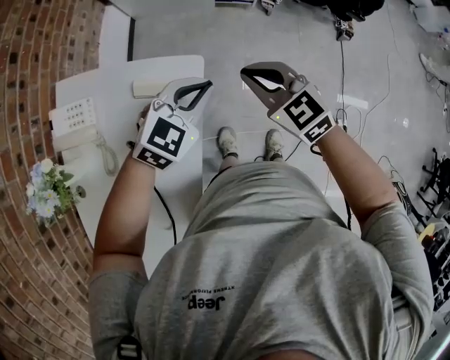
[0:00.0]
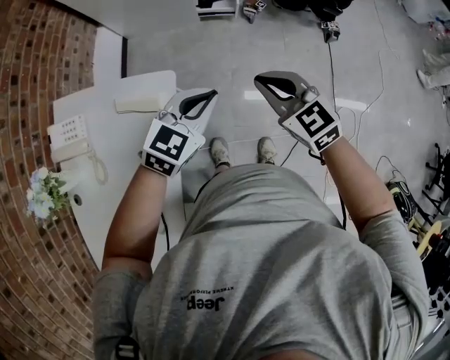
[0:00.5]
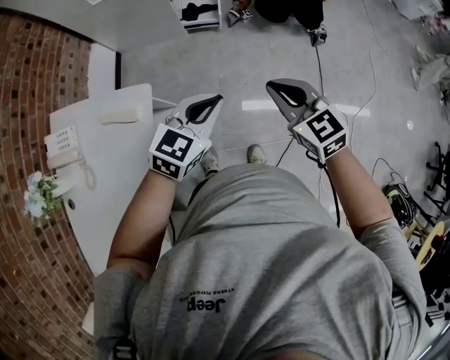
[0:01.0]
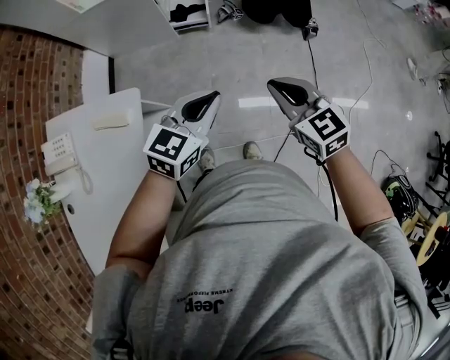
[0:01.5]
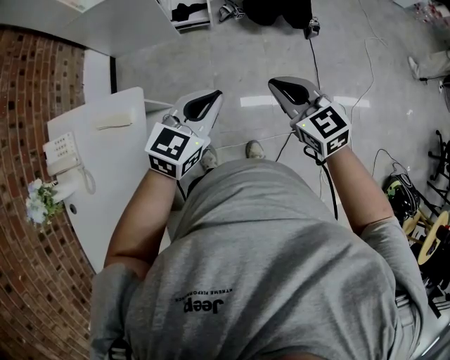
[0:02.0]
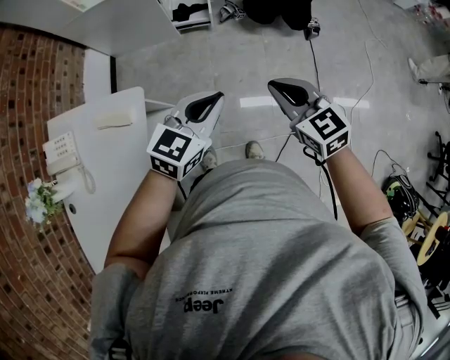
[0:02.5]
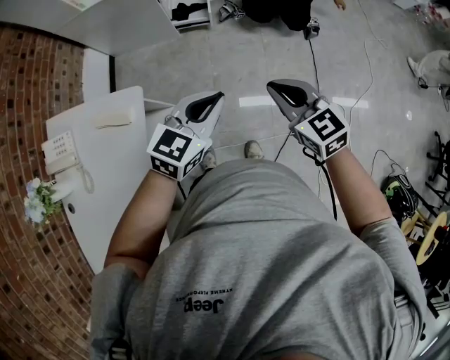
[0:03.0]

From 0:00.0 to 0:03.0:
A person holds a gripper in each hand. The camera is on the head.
From 0:00.0 to 0:01.5: The grippers both shift to the right by approximately 30 cm.
From 0:01.5 to 0:03.0: Both grippers stay about where they are.

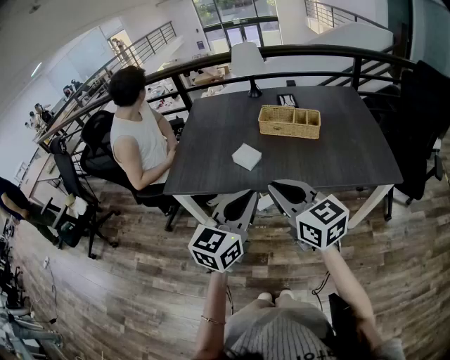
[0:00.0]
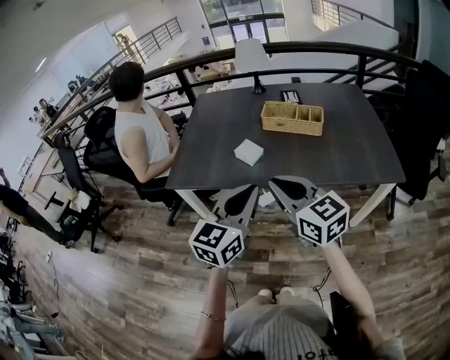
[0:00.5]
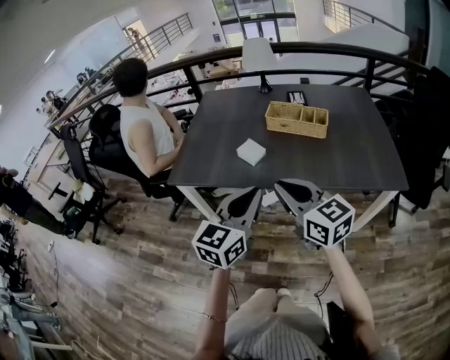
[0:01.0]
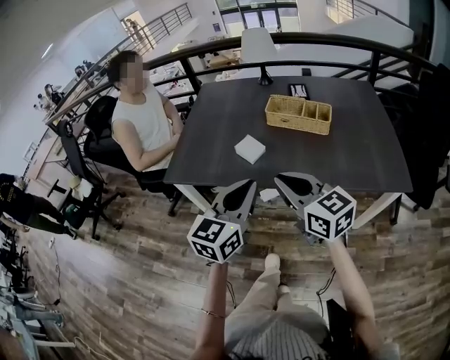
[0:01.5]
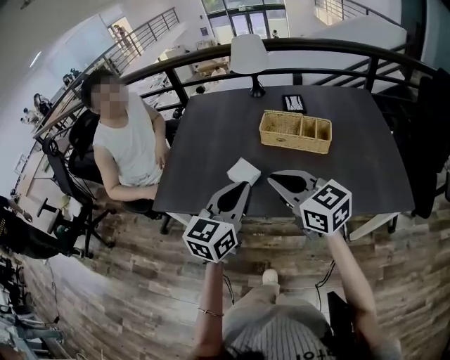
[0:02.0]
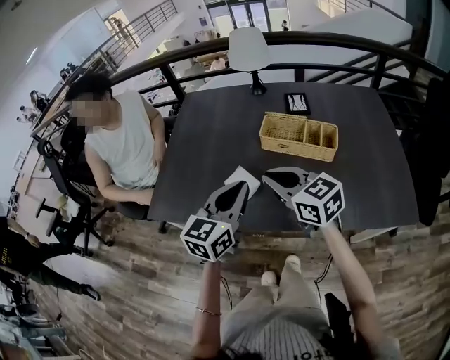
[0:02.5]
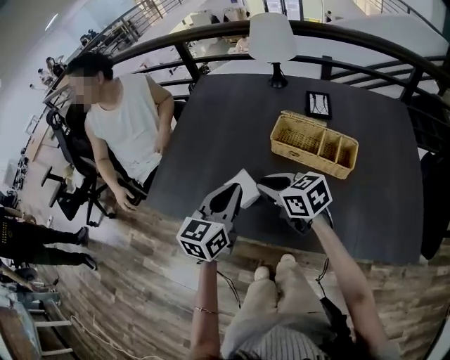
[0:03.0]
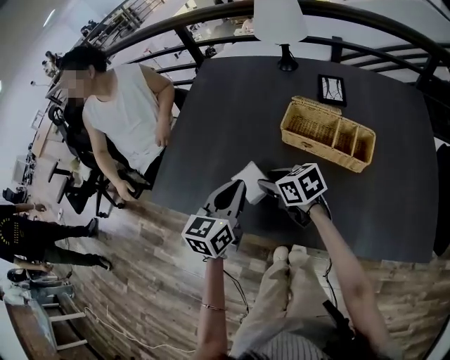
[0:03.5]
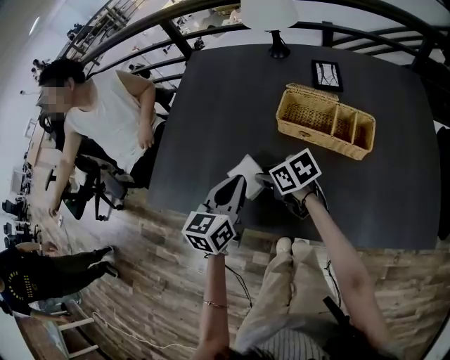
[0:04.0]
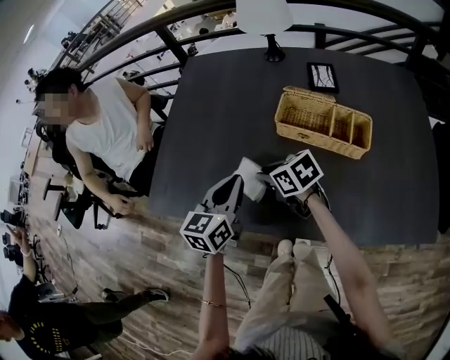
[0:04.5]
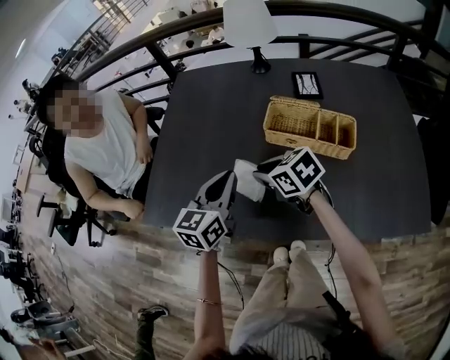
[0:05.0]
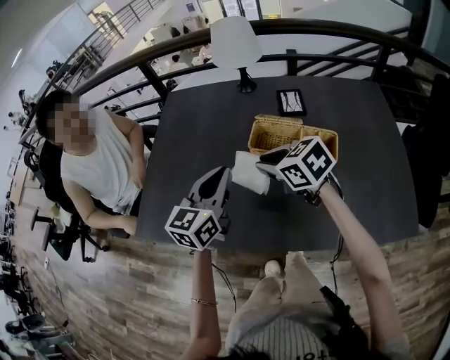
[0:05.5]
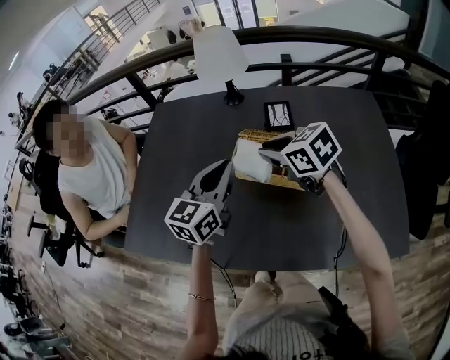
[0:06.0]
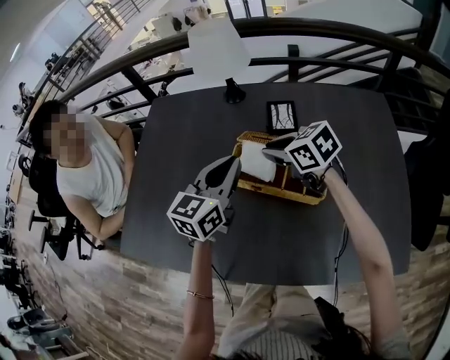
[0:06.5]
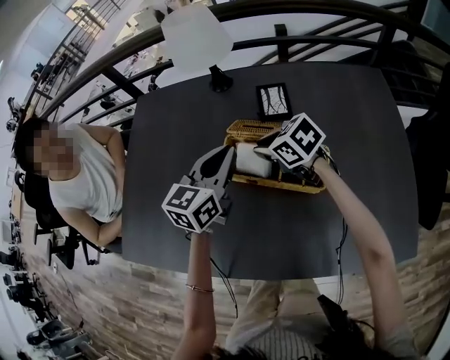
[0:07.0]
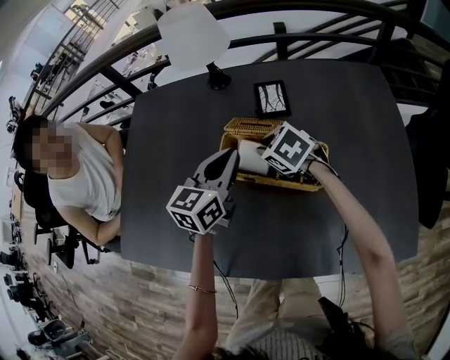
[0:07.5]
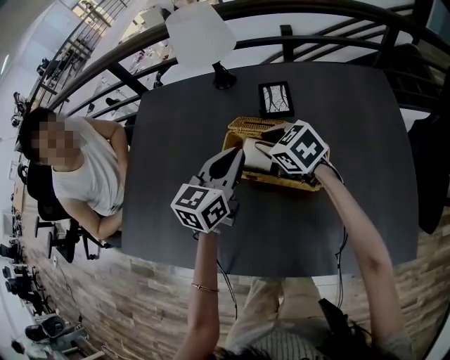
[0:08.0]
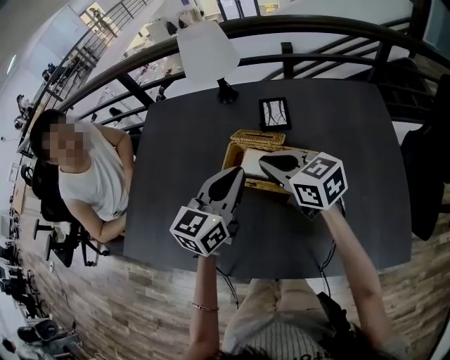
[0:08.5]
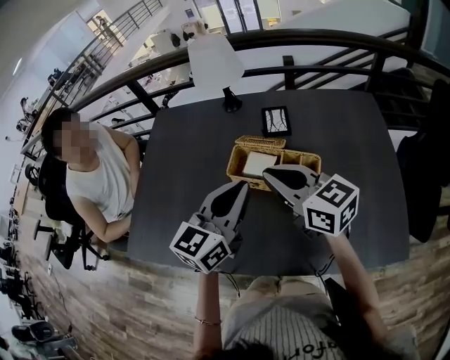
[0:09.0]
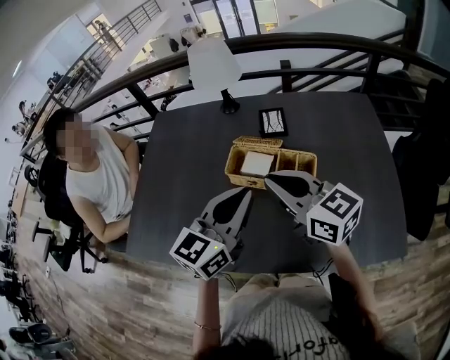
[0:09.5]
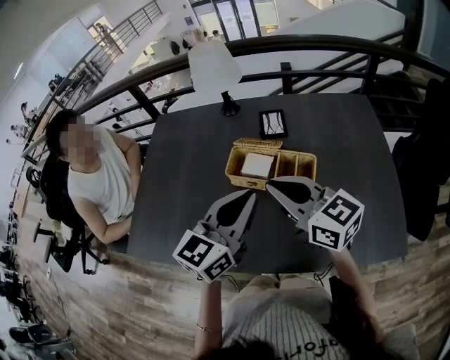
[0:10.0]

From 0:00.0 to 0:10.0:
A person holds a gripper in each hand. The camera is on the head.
From 0:00.0 to 0:02.0: The two grippers go roughly 15 cm forward.
From 0:02.0 to 0:04.0: The right gripper moves downward and forward, roughly 25 cm, rotates roughly 50 degrees, and opens its fingers; the left gripper shifts some 20 cm forward and downward, and swivels approximately 20 degrees.
From 0:04.0 to 0:06.0: The right gripper heads to the right and upward, covering about 25 cm, and turns by some 20 degrees, while the left gripper moves to the right, upward and forward, some 20 cm, and rotates some 20 degrees.
From 0:06.0 to 0:08.0: The right gripper goes about 10 cm downward and forward; the left gripper is displaced to the right and downward by roughly 10 cm.
From 0:08.0 to 0:10.0: Both grippers move backward and upward, about 20 cm. The right gripper tilts its fingers approximately 30 degrees upward.

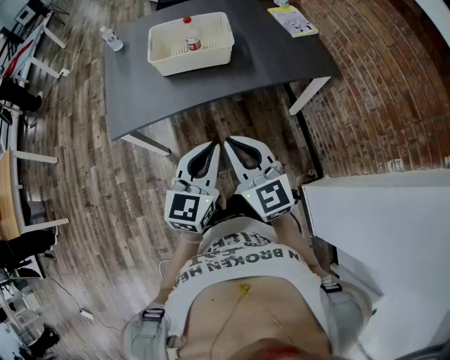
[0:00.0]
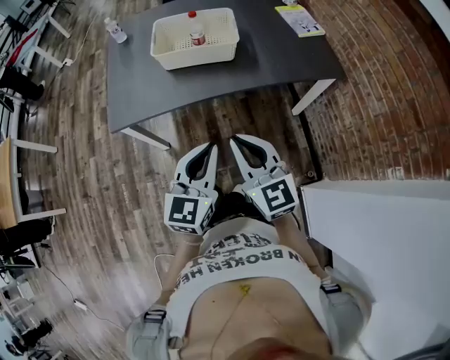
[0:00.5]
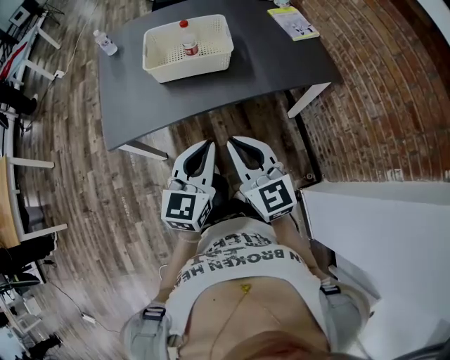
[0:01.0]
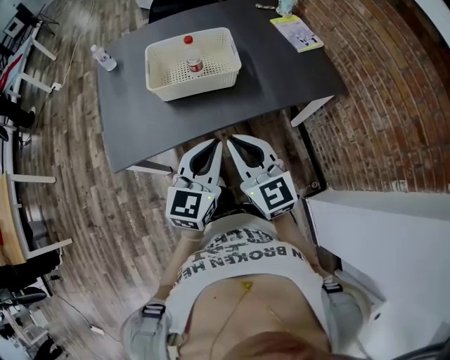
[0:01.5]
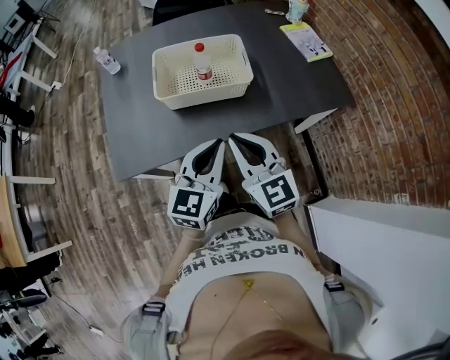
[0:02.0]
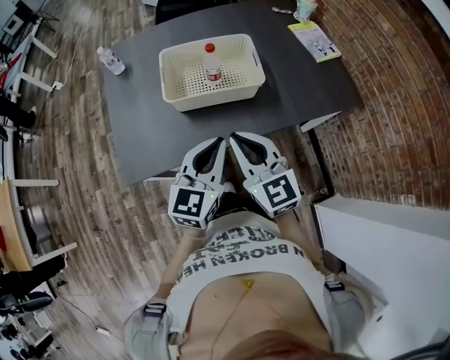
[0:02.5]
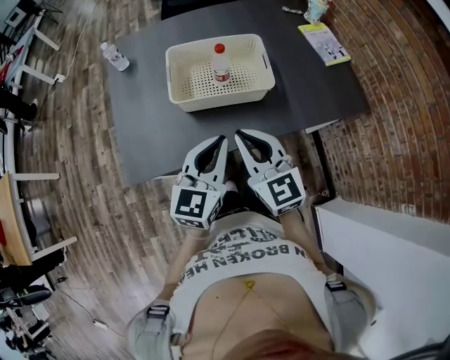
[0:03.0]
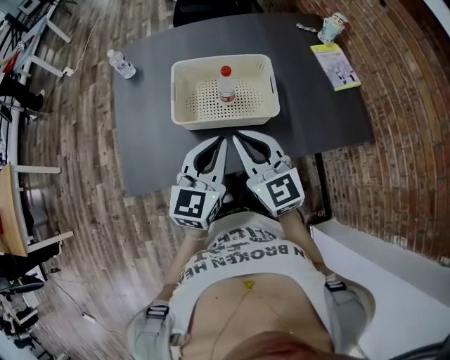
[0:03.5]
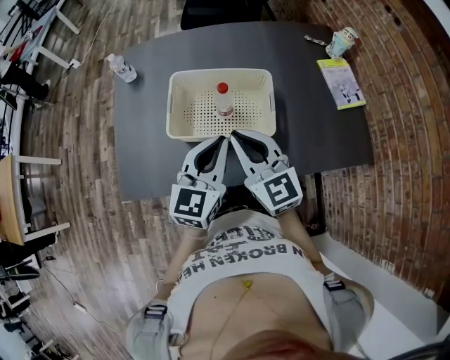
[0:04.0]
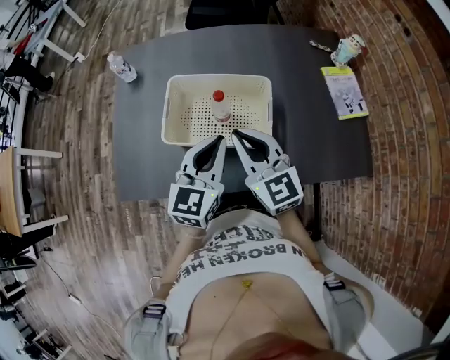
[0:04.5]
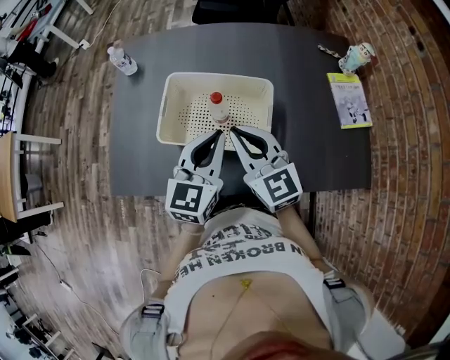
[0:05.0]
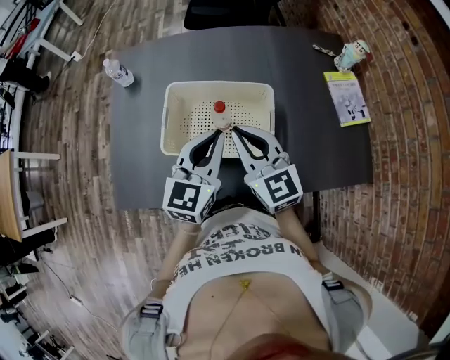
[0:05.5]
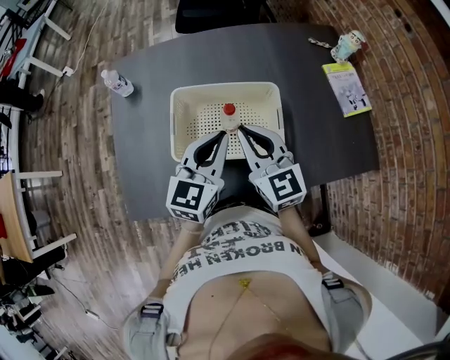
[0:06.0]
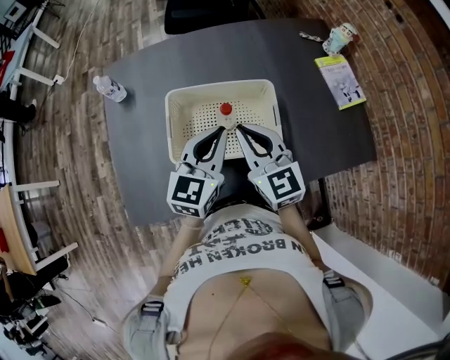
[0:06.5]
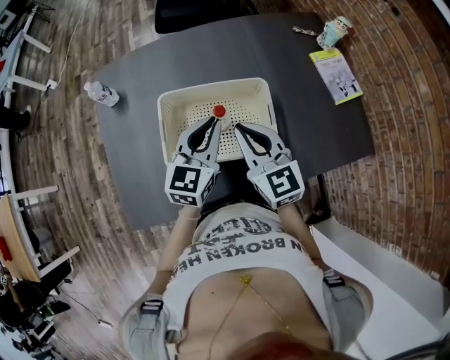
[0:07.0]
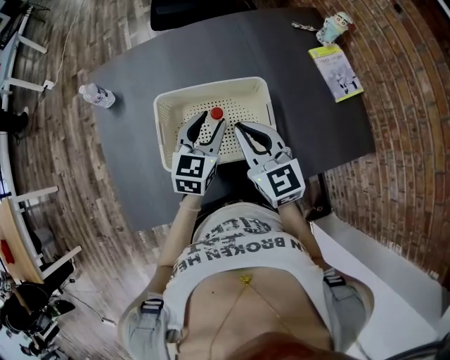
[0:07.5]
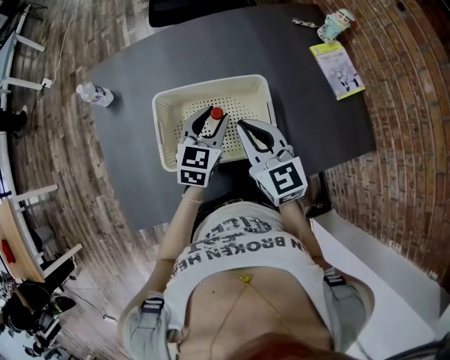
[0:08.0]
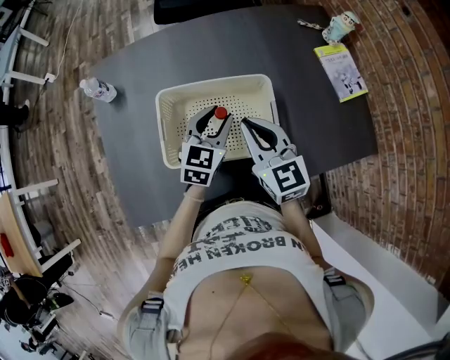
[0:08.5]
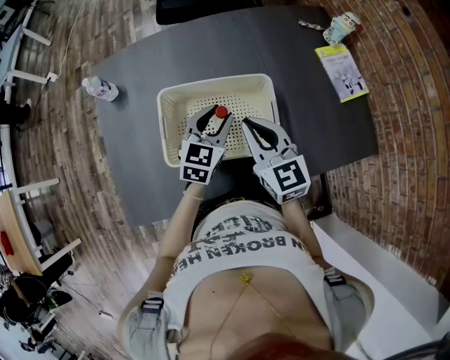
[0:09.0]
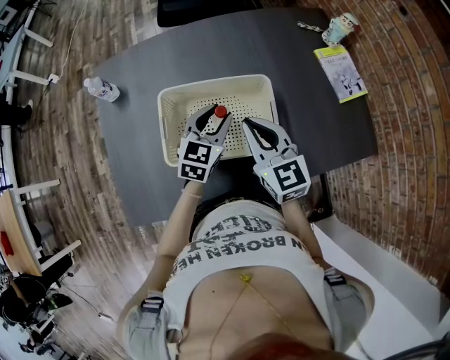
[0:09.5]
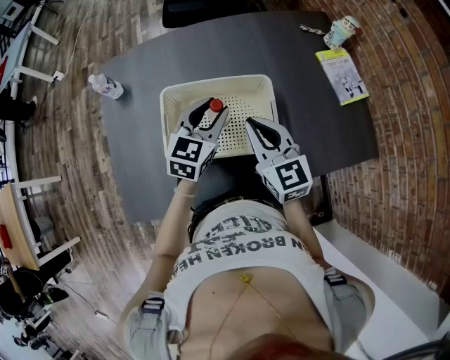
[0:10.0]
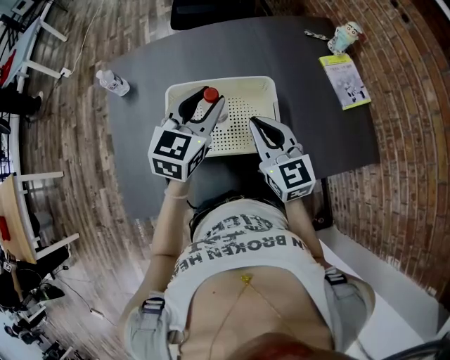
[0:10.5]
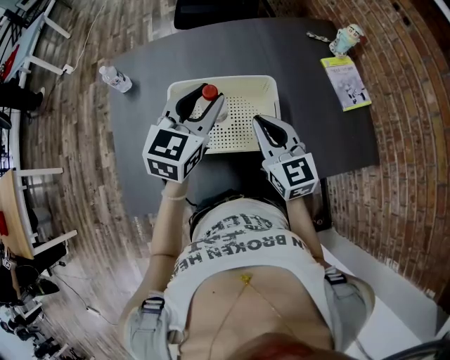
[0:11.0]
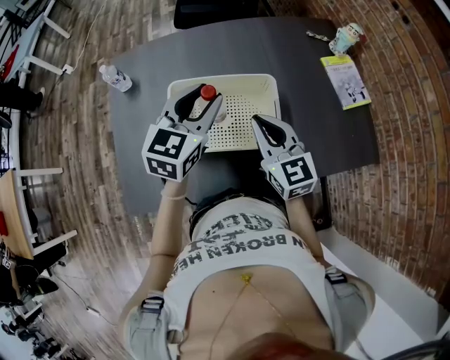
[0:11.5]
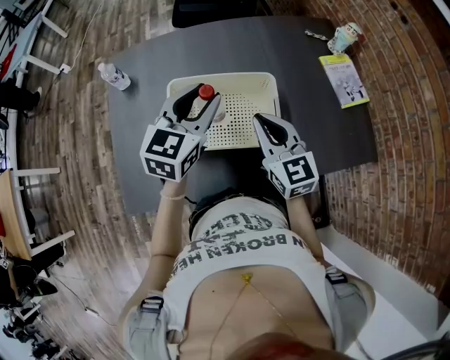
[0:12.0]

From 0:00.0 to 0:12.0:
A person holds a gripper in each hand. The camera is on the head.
From 0:00.0 to 0:02.0: Both grippers move forward, roughly 20 cm.
From 0:02.0 to 0:04.0: Both grippers move forward, roughly 20 cm.
From 0:04.0 to 0:06.0: The two grippers go about 10 cm forward.
From 0:06.0 to 0:08.0: The right gripper ends up roughly 5 cm from where it was. Meanwhile the left gripper goes about 15 cm downward and forward, and opens.
From 0:08.0 to 0:10.0: The grippers make only small movements.
From 0:10.0 to 0:12.0: The left gripper heads upward, covering about 10 cm.

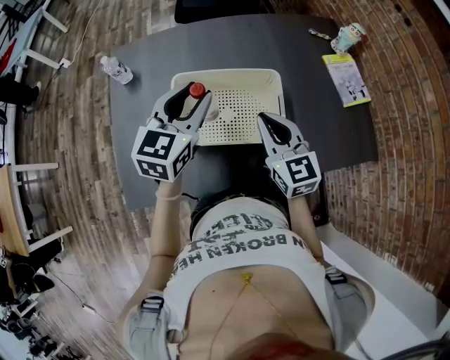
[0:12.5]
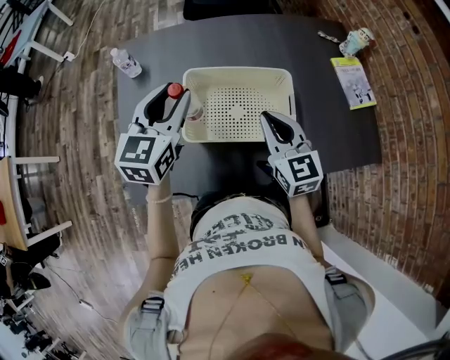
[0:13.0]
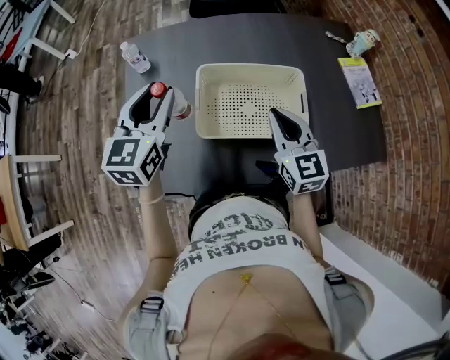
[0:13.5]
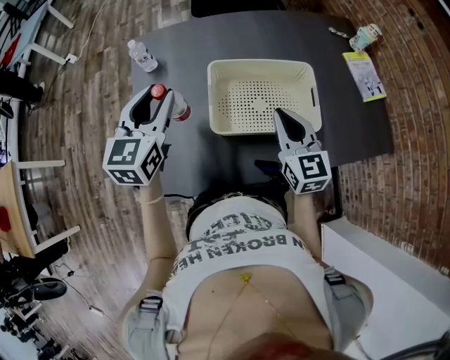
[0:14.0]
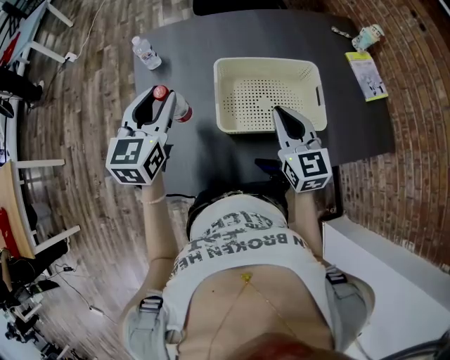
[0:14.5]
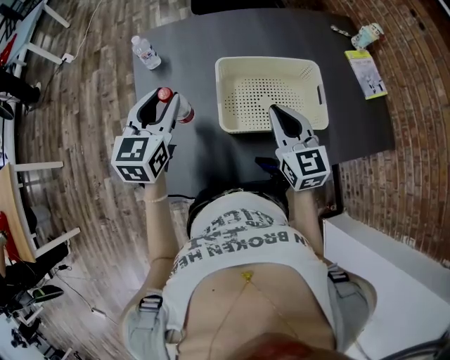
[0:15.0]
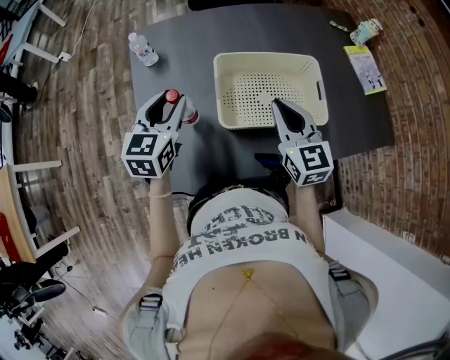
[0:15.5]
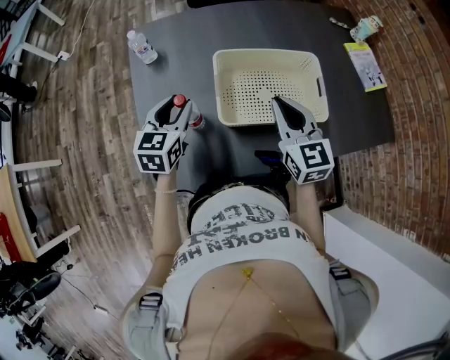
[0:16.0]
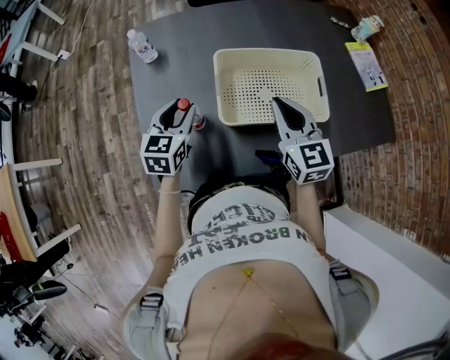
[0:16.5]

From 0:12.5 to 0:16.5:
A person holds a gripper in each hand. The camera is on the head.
From 0:12.5 to 0:14.5: The left gripper goes approximately 25 cm to the left. Meanwhile the right gripper is displaced to the left by some 10 cm.
From 0:14.5 to 0:16.5: The left gripper goes roughly 15 cm downward.
